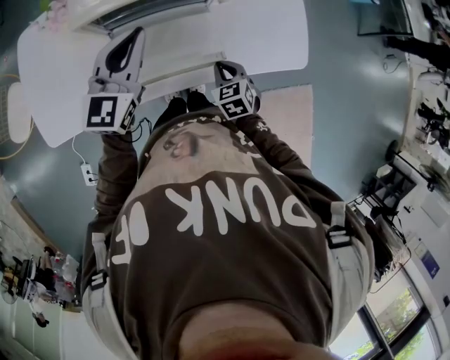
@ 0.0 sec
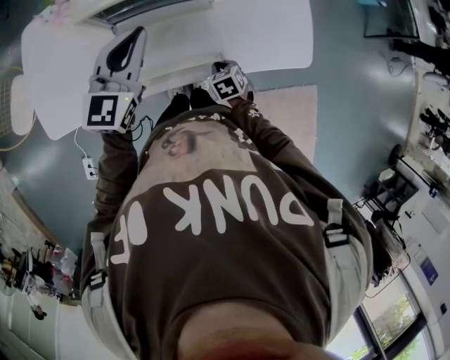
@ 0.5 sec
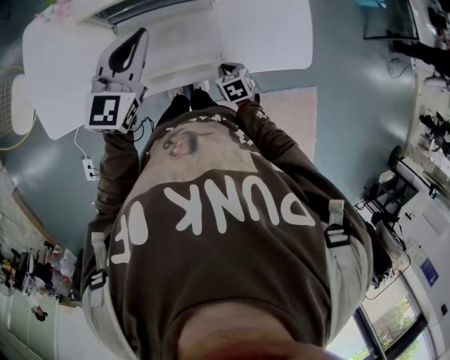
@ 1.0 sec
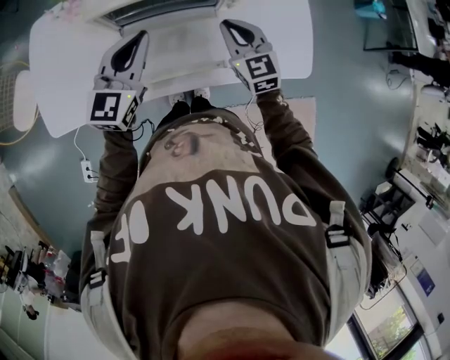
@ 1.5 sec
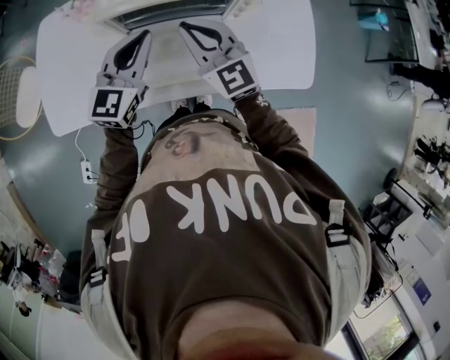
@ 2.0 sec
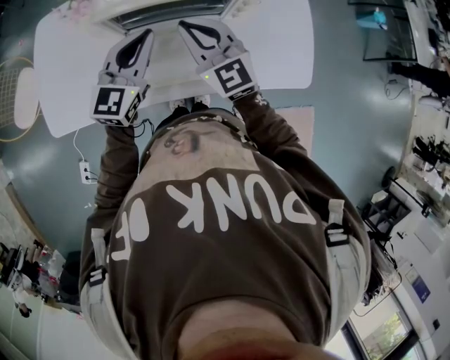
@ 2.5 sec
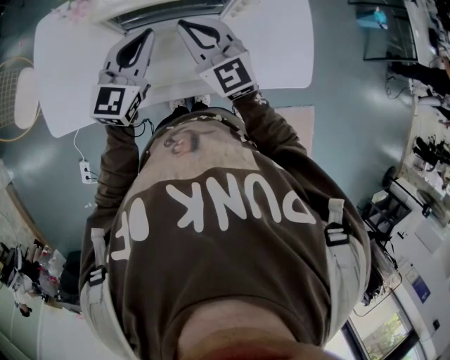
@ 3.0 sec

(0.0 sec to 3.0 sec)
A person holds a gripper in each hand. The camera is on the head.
0.0 sec - 1.5 sec: The right gripper travels upward and forward by approximately 20 cm, and tilts its fingers some 30 degrees upward.
1.5 sec - 3.0 sec: The right gripper is displaced to the left and upward by about 15 cm.

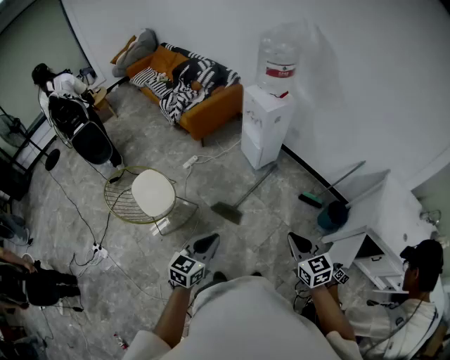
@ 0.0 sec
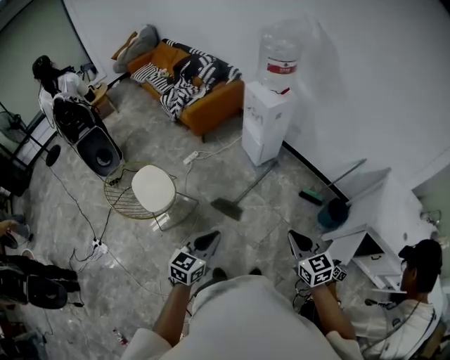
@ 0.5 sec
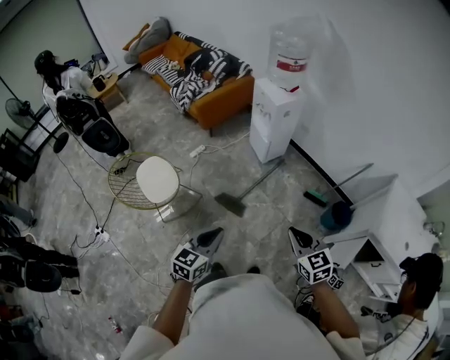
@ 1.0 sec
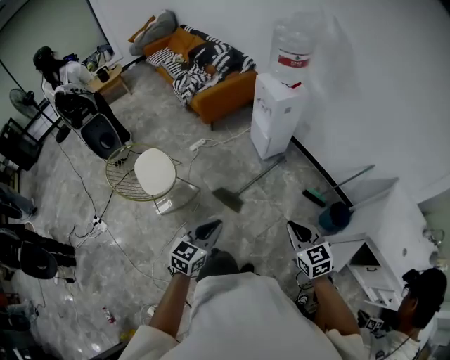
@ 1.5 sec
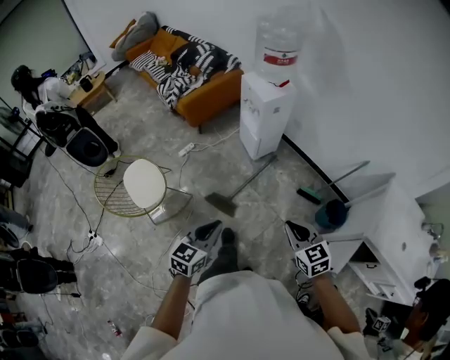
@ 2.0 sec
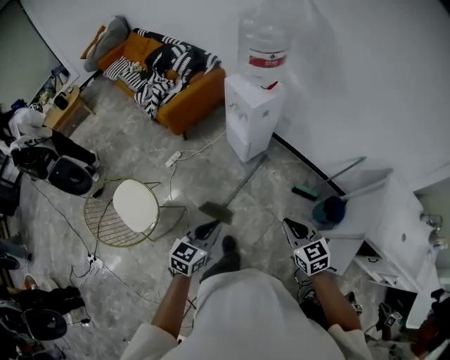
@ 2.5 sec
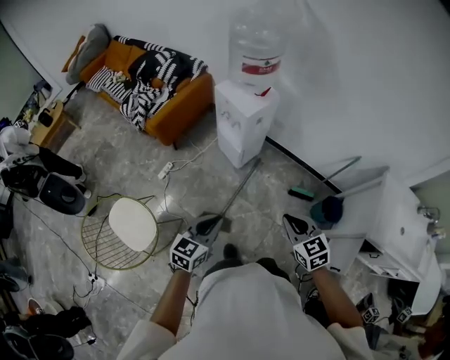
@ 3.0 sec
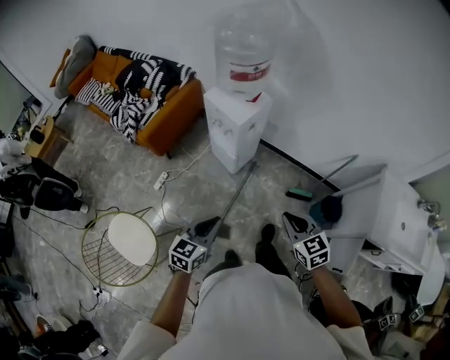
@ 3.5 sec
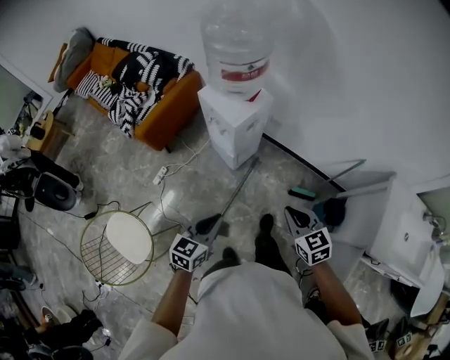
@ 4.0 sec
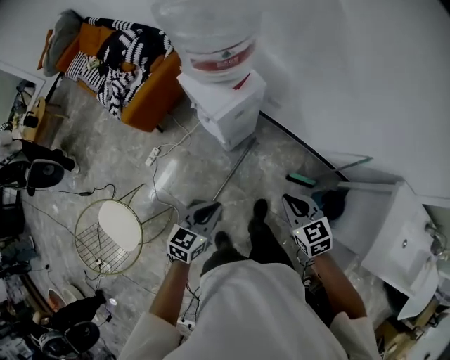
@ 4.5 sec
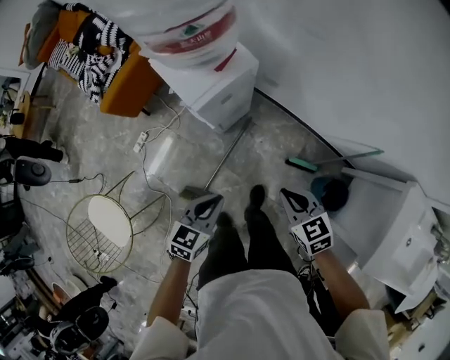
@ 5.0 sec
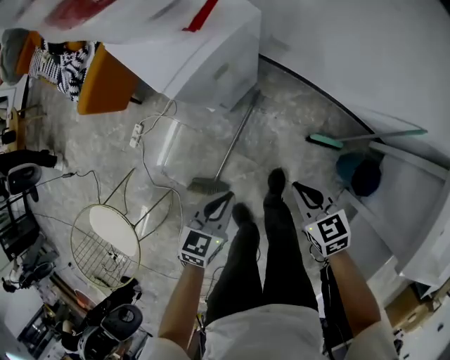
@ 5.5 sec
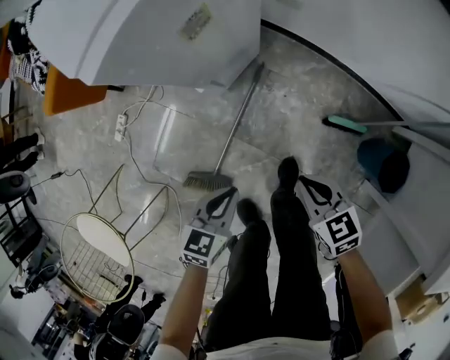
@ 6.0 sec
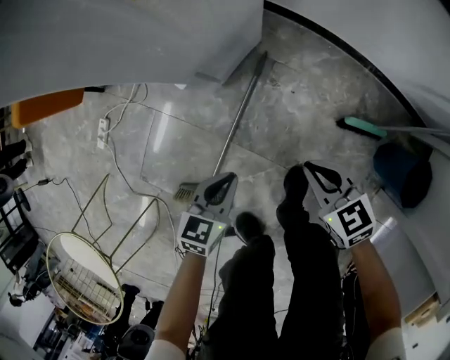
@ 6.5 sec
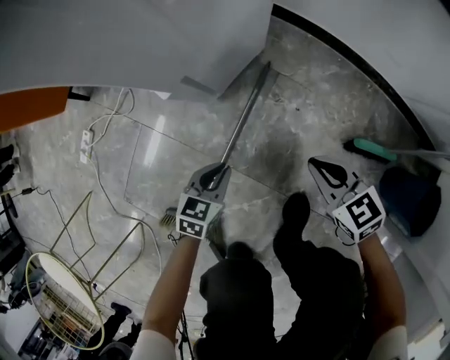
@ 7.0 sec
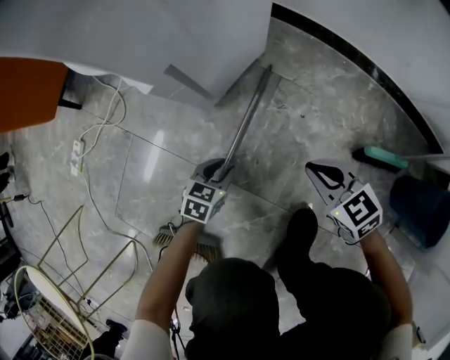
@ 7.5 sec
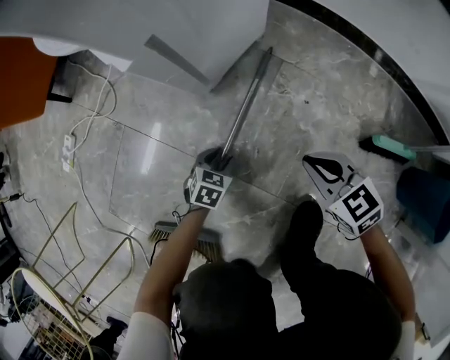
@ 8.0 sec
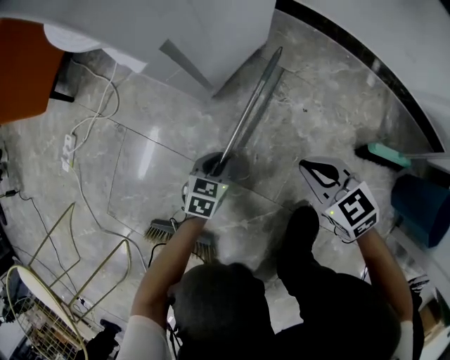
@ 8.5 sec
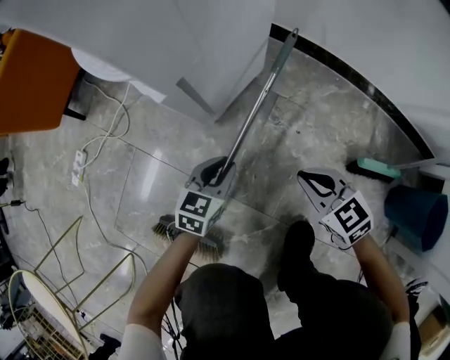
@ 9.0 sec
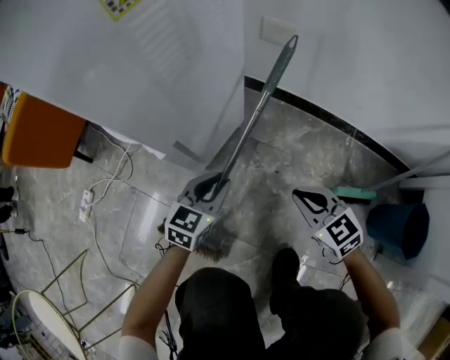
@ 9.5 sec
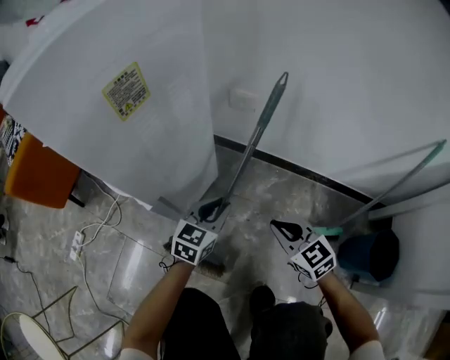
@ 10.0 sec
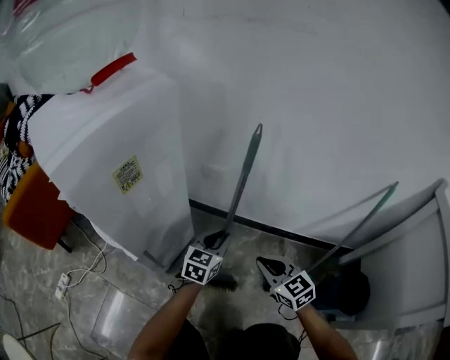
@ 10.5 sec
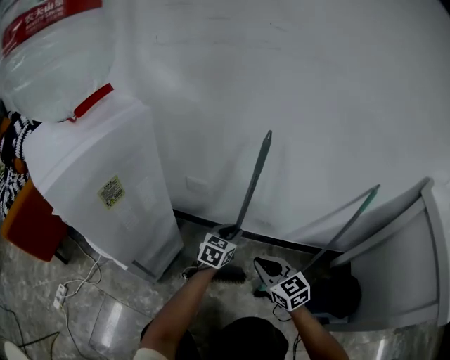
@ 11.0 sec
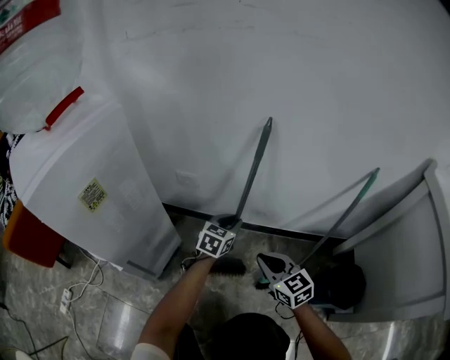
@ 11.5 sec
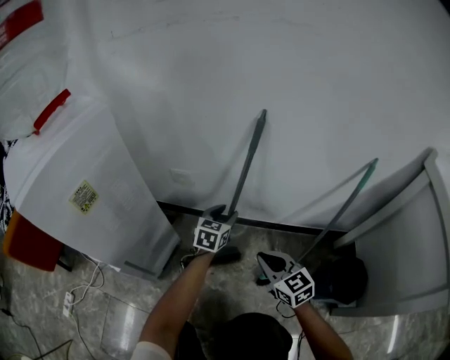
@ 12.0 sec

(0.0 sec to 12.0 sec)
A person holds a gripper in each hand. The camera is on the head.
0.0 sec - 2.0 sec: Both grippers move forward and to the right, some 10 cm.
2.0 sec - 4.0 sec: The grippers both shift forward by about 35 cm.
4.0 sec - 6.0 sec: The grippers both shift downward by about 50 cm. The right gripper swivels about 20 degrees.
6.0 sec - 8.0 sec: The grippers both shift downward by approximately 50 cm. The left gripper rotates approximately 20 degrees, and opens.
8.0 sec - 10.0 sec: The left gripper heads upward, forward and to the right, covering about 40 cm, angles its fingers upward, by about 40 degrees, and closes its fingers, while the right gripper is displaced upward, to the right and forward by about 20 cm, and swivels roughly 20 degrees.
10.0 sec - 12.0 sec: The right gripper shifts approximately 15 cm to the right and upward. Meanwhile the left gripper travels to the right and forward by about 25 cm.

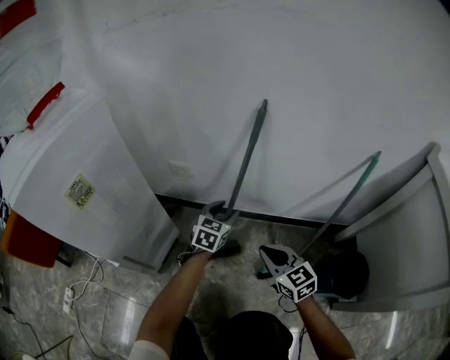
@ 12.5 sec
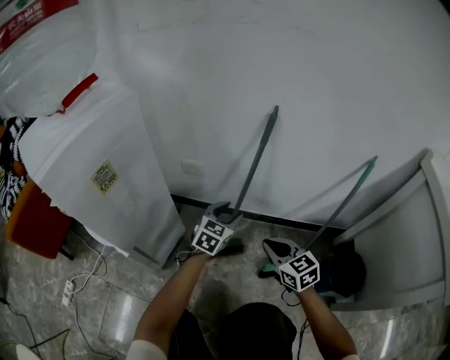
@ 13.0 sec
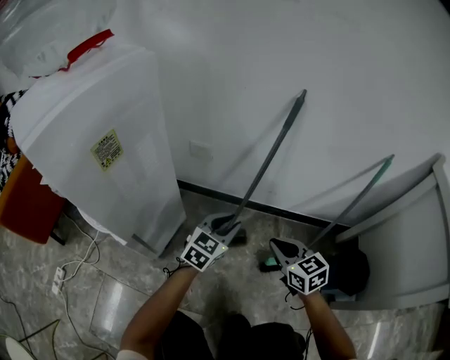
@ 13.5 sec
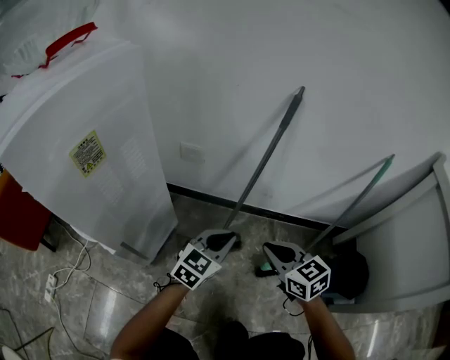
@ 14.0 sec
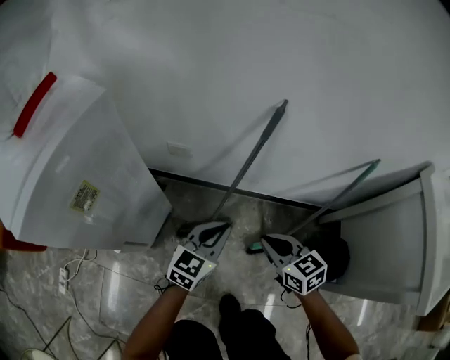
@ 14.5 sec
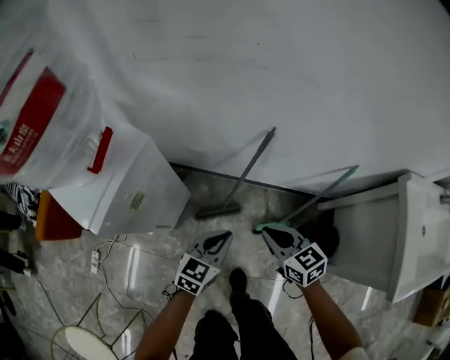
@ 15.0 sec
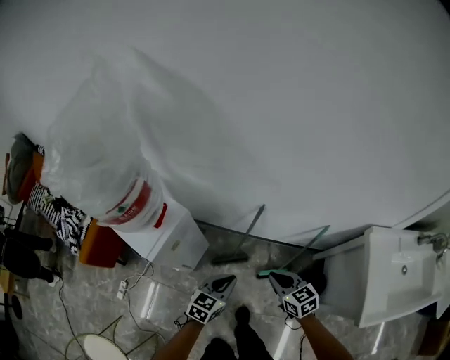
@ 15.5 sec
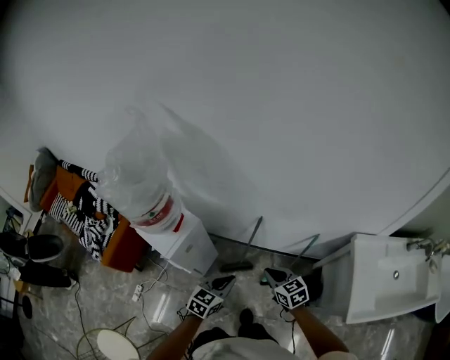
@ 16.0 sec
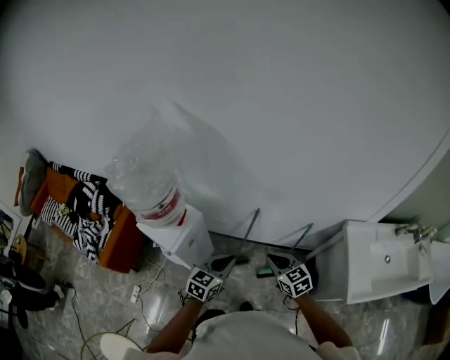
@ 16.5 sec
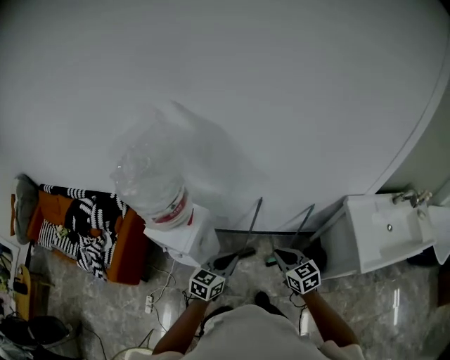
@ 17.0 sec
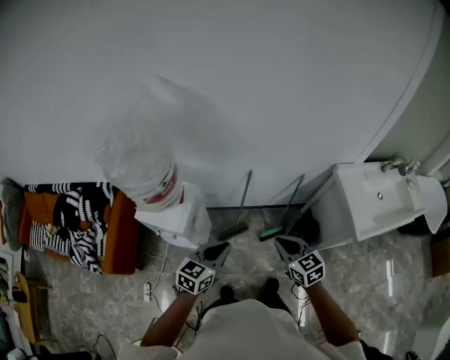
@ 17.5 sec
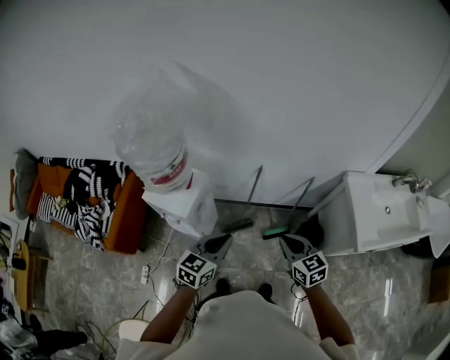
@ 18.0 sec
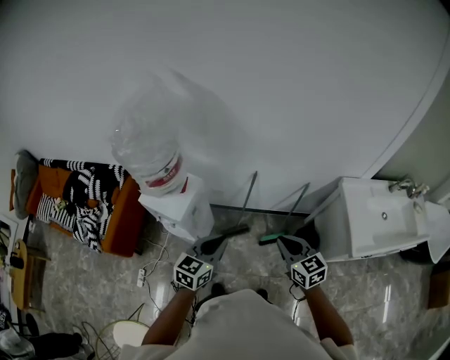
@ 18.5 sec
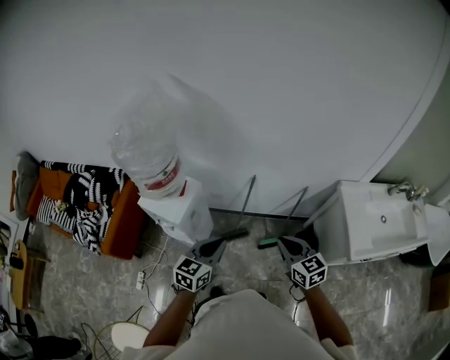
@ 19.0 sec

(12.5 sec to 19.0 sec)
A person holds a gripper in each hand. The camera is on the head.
12.5 sec - 14.5 sec: The right gripper is displaced upward by approximately 10 cm, while the left gripper moves upward and backward, some 20 cm, and closes.
14.5 sec - 17.0 sec: Both grippers travel together upward, about 60 cm.
17.0 sec - 19.0 sec: The right gripper shifts some 10 cm backward and to the right; the left gripper moves backward, roughly 5 cm.

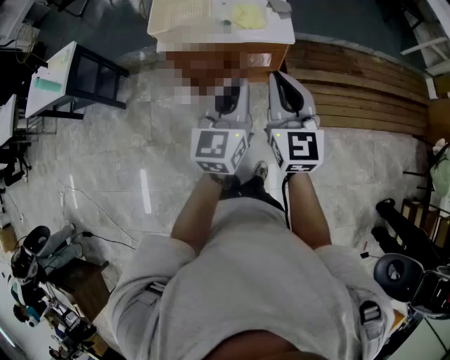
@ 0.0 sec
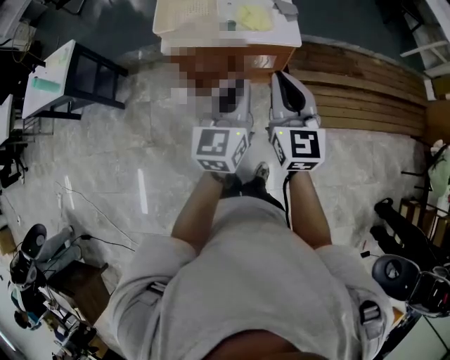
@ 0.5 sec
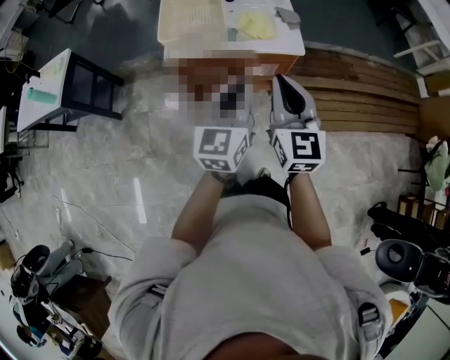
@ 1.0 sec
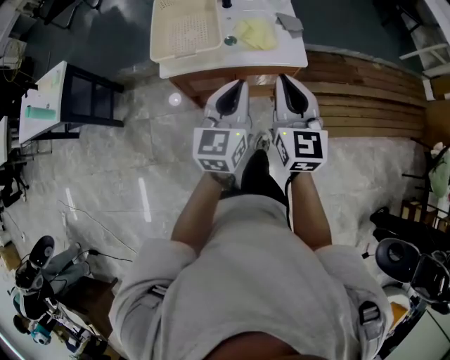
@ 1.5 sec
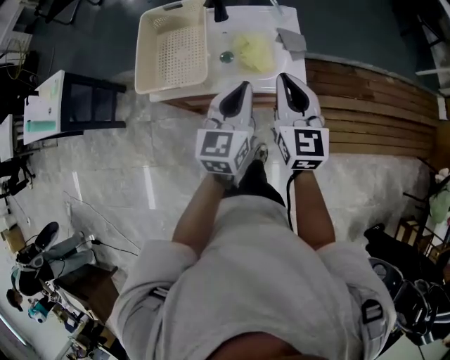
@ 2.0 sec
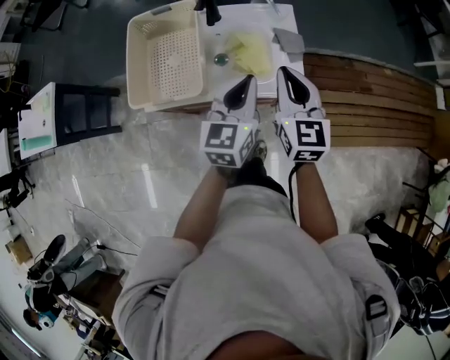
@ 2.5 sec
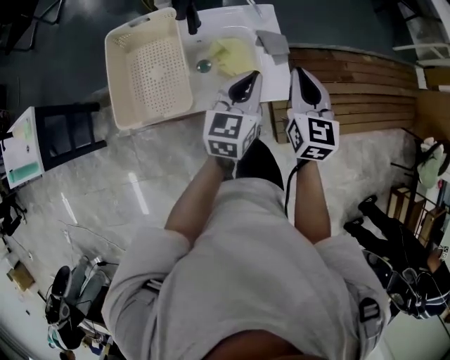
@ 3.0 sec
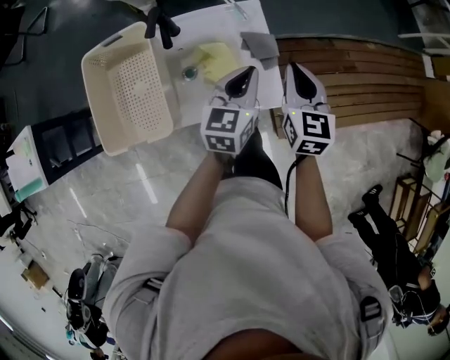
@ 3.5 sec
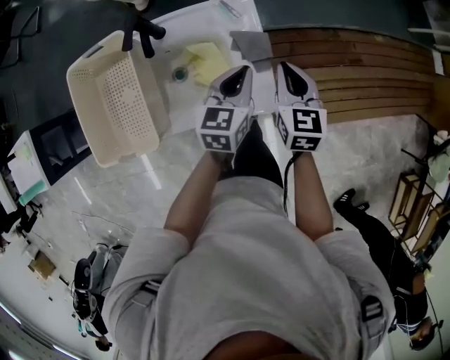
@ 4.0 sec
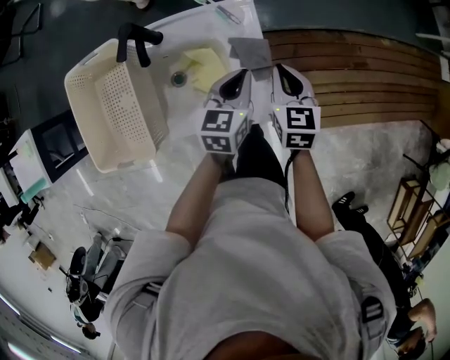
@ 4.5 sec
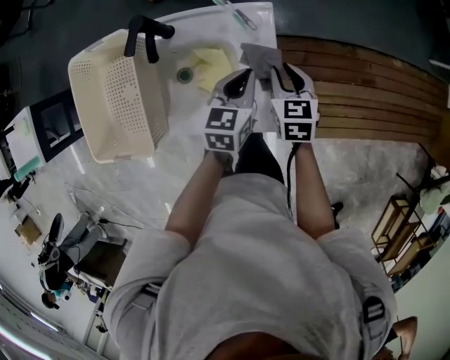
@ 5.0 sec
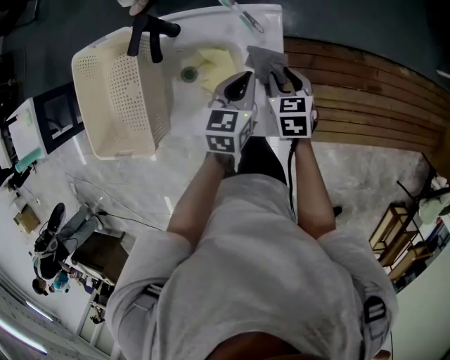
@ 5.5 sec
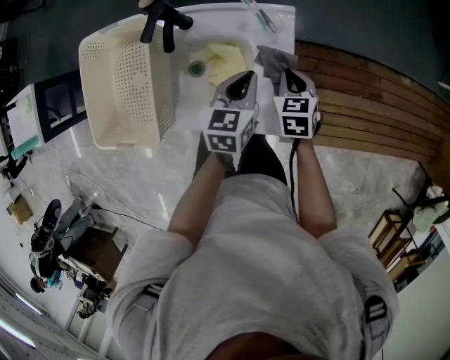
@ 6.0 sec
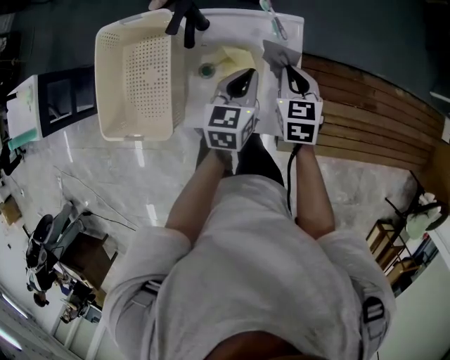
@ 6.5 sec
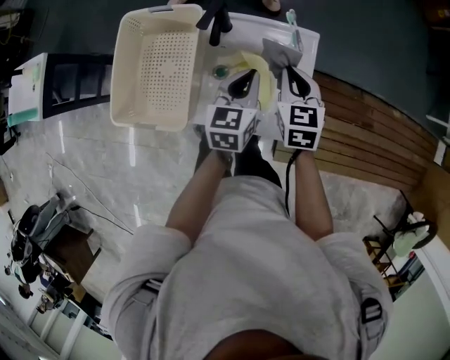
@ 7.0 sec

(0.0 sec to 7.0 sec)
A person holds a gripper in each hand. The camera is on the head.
0.0 sec - 2.0 sec: Both grippers travel together forward, some 30 cm.
2.0 sec - 3.5 sec: The right gripper heads forward, to the right and downward, covering some 20 cm, and rotates roughly 20 degrees. Meanwhile the left gripper shifts roughly 20 cm forward, downward and to the right.
3.5 sec - 5.0 sec: The two grippers go roughly 15 cm downward and forward. The right gripper swivels roughly 30 degrees, and opens.
5.0 sec - 7.0 sec: The grippers both shift to the left and upward by approximately 15 cm. The right gripper closes up.
